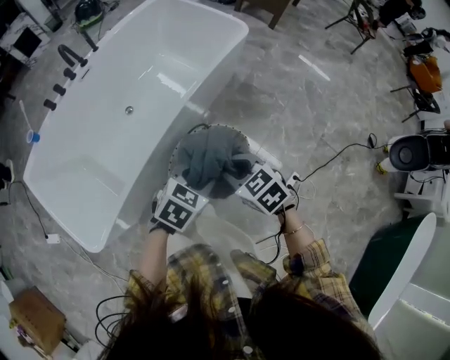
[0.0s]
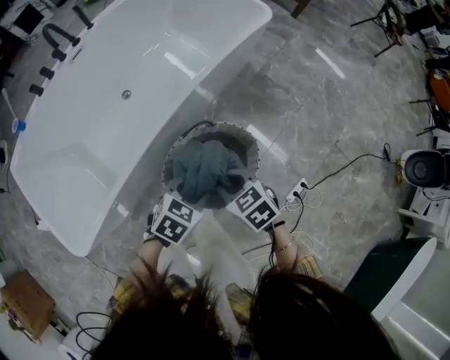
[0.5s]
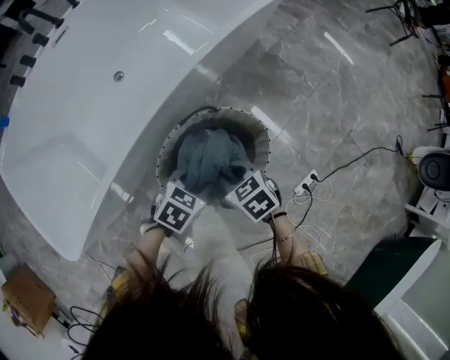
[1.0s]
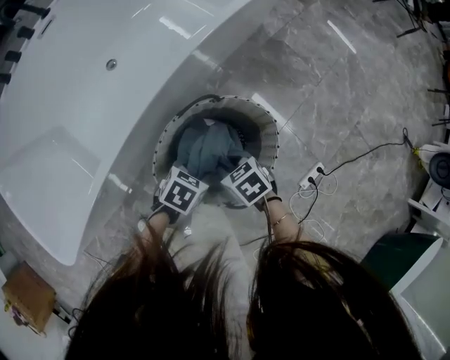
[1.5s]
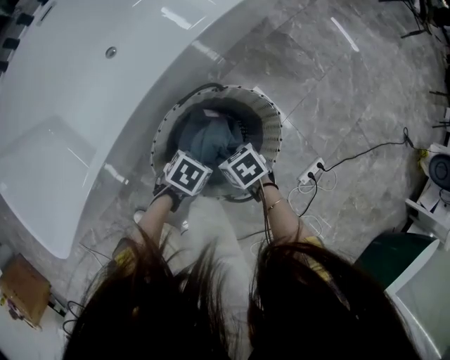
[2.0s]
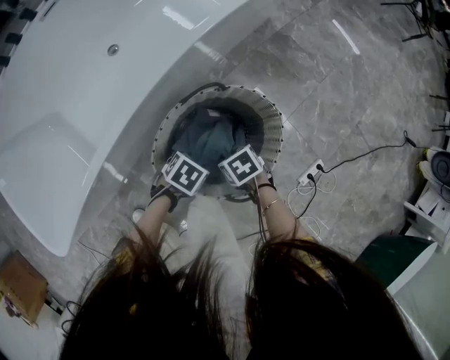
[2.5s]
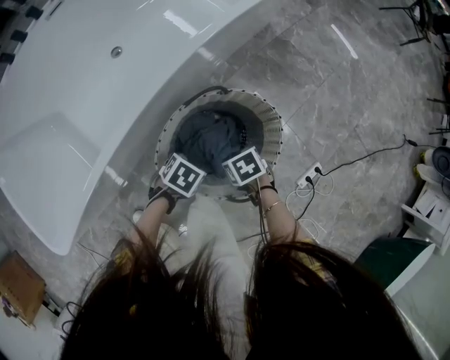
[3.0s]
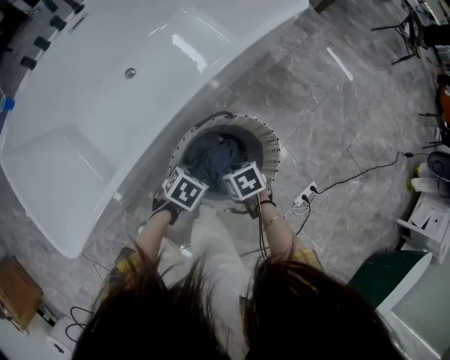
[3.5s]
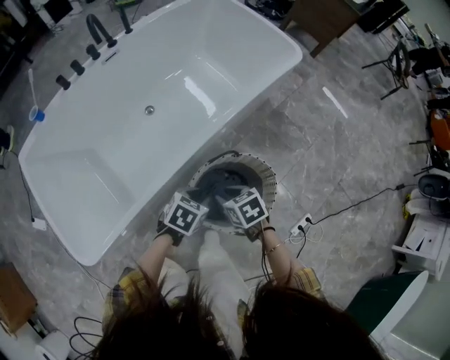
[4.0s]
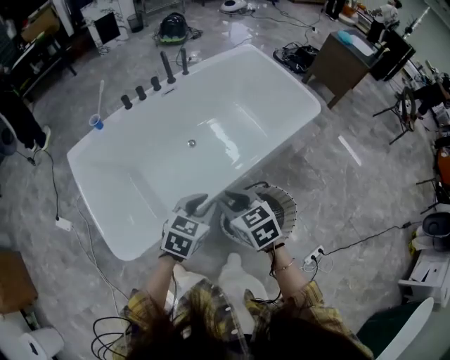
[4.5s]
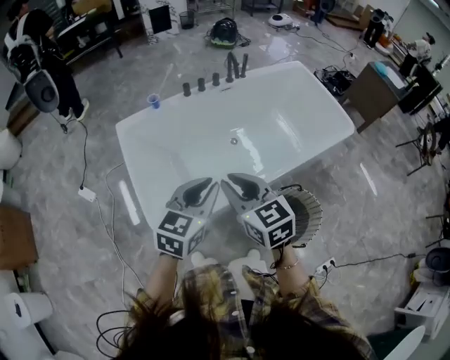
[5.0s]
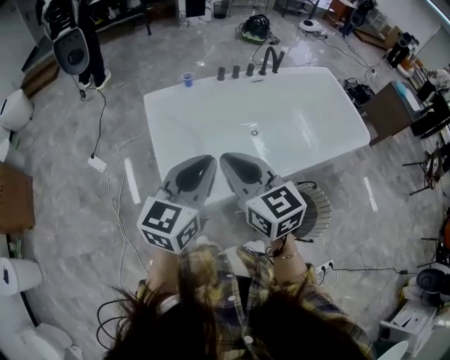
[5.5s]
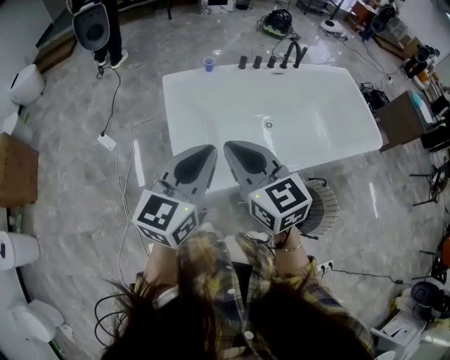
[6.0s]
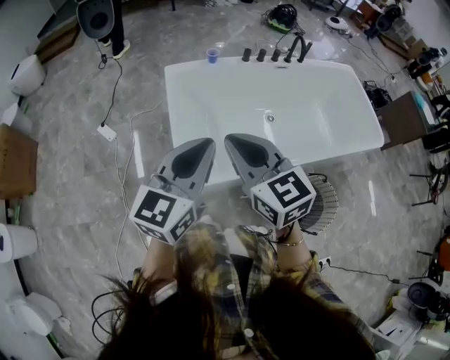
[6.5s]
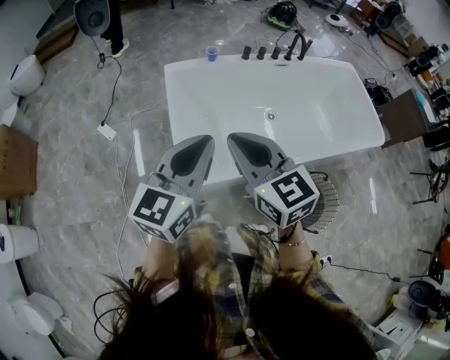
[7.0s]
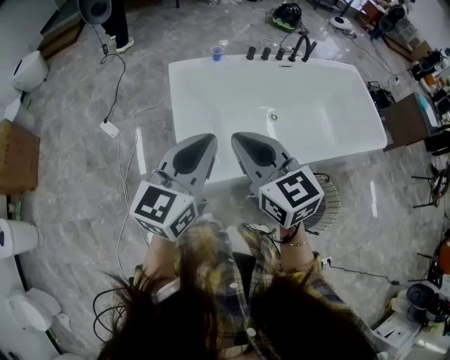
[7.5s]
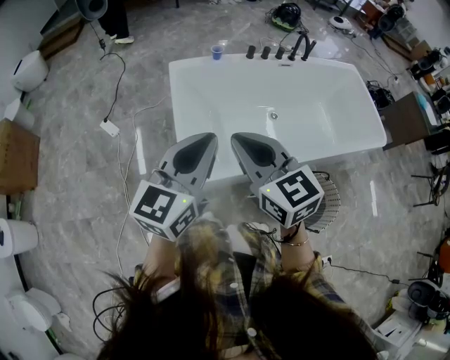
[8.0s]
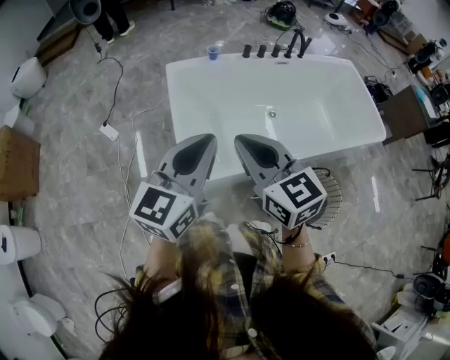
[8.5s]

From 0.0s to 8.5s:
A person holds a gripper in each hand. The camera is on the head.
From 0.0s to 2.0s: Both grippers move downward, roughly 40 cm. The left gripper changes its angle by some 30 degrees; the right gripper rotates about 30 degrees.
From 2.0s to 4.0s: The two grippers go approximately 20 cm upward.
From 4.0s to 6.5s: Both grippers are carried about 50 cm. The right gripper points its fingers some 40 degrees further upward; the left gripper tilts its fingers roughly 50 degrees upward.
From 6.5s to 8.5s: The grippers make only small movements.

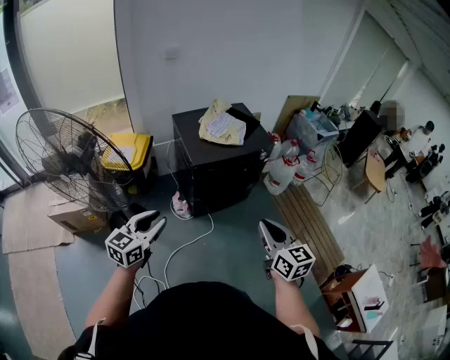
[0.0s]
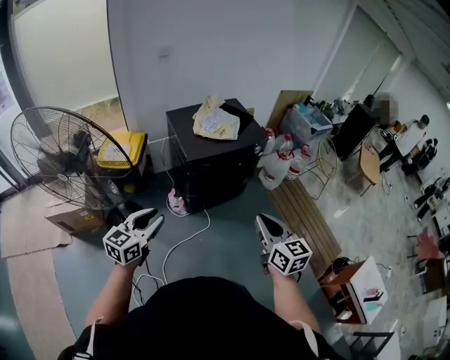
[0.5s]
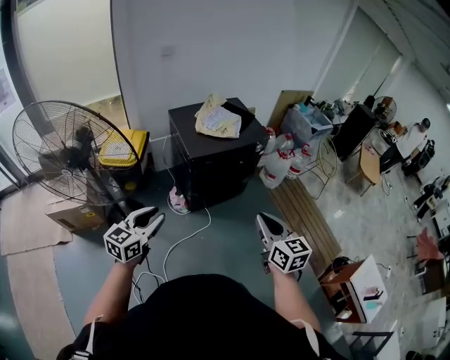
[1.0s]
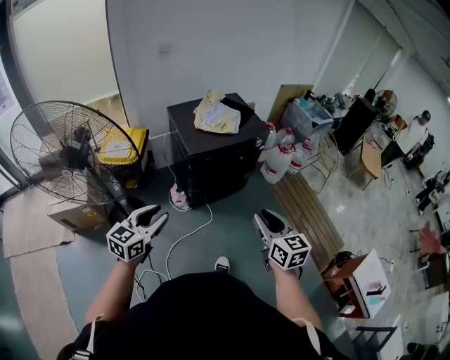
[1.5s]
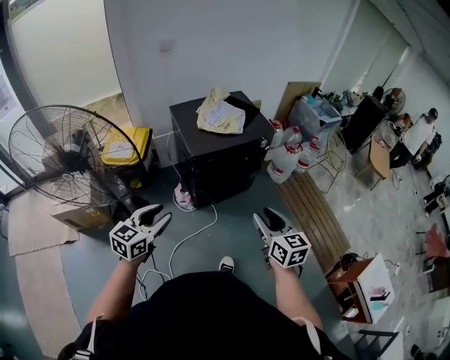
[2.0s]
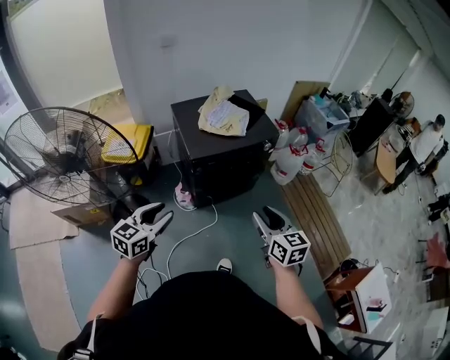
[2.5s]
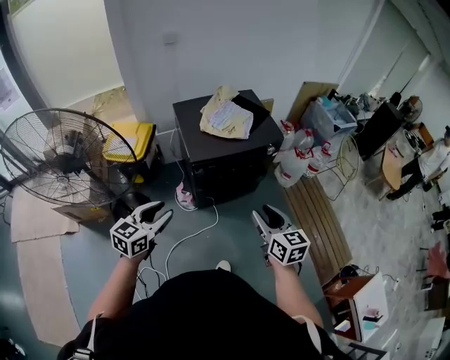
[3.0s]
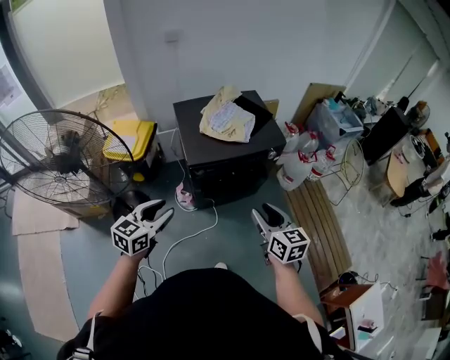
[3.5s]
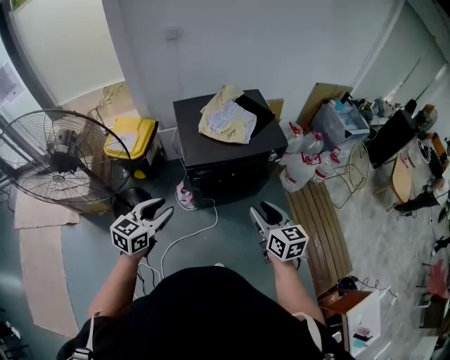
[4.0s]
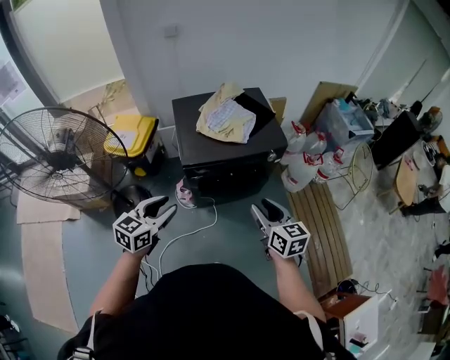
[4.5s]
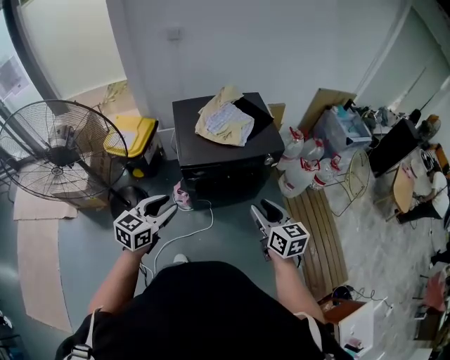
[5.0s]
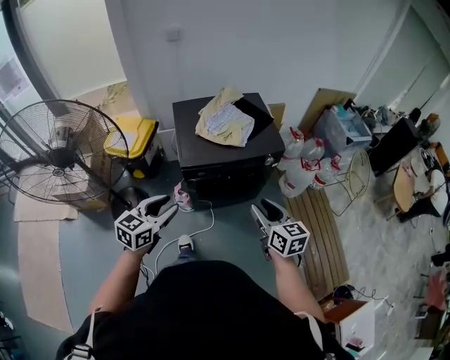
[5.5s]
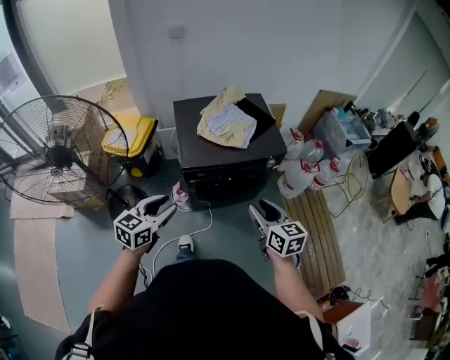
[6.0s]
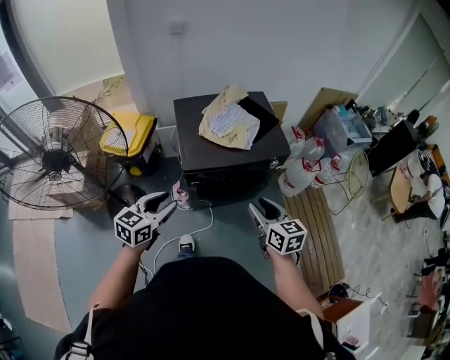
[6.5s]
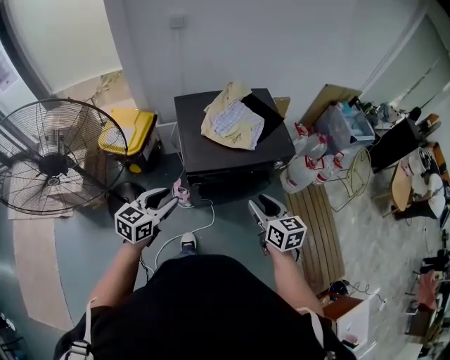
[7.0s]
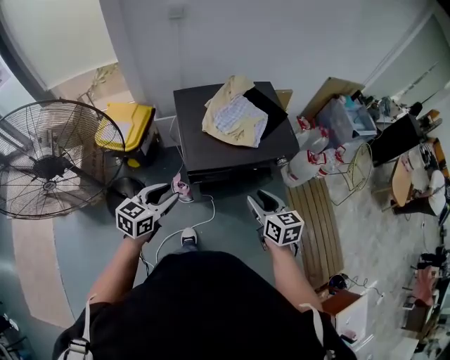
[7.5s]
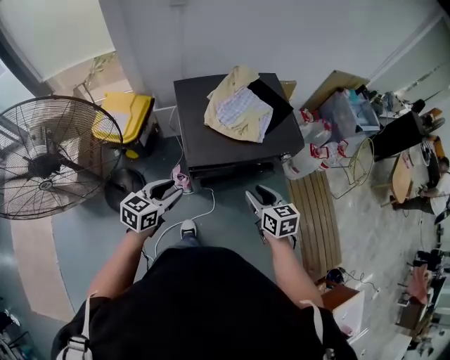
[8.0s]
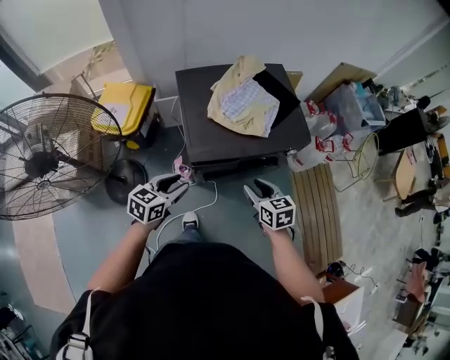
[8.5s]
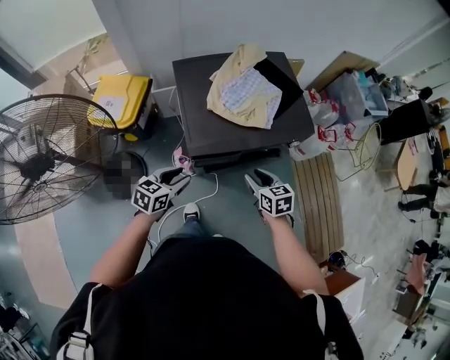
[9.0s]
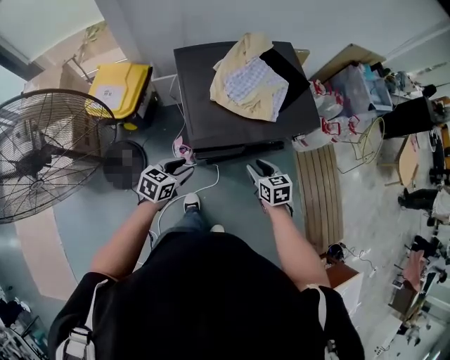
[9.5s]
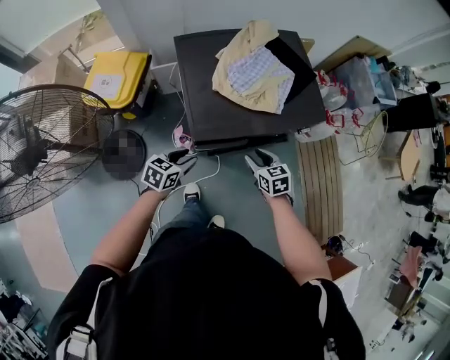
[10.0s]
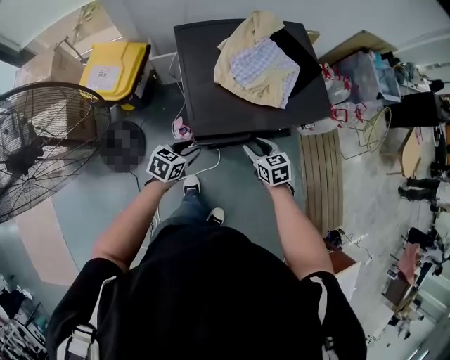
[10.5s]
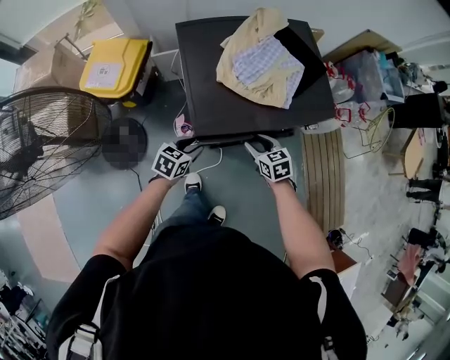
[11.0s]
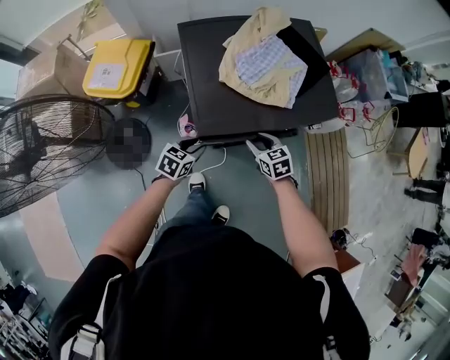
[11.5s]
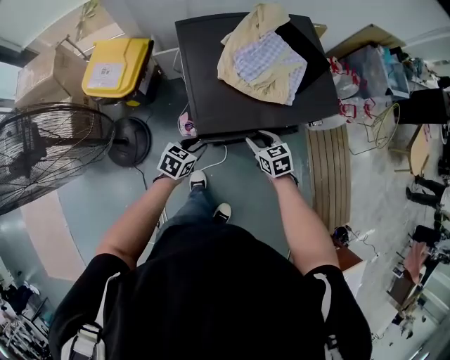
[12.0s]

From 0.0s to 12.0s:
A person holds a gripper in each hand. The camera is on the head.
From 0.0s to 2.0s: The right gripper opens up.
From 2.0s to 4.0s: The right gripper is displaced forward by about 20 cm; the left gripper heads forward and to the right, covering roughly 15 cm.
From 4.0s to 6.0s: The grippers stay close to where they were, moving slightly.
From 6.0s to 8.0s: Both grippers travel together forward, downward and to the left, roughly 15 cm.
From 8.0s to 10.0s: Both grippers travel together downward and forward, roughly 20 cm.
From 10.0s to 12.0s: The left gripper travels downward by roughly 5 cm; the right gripper moves approximately 5 cm.

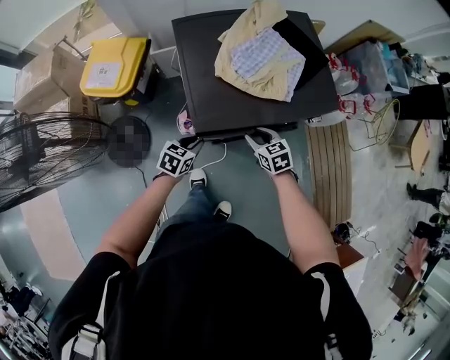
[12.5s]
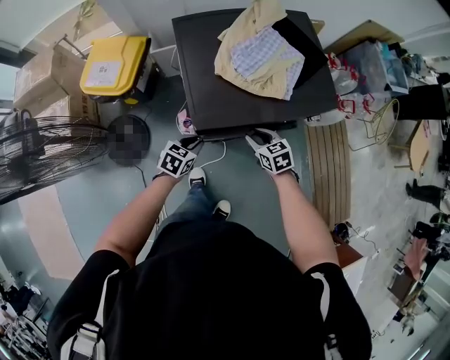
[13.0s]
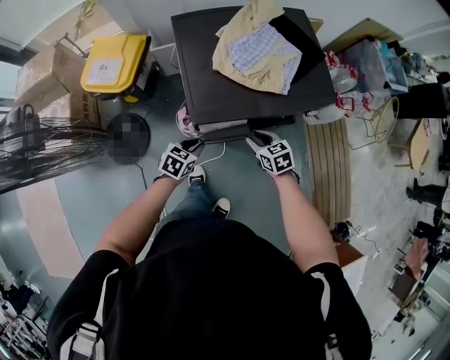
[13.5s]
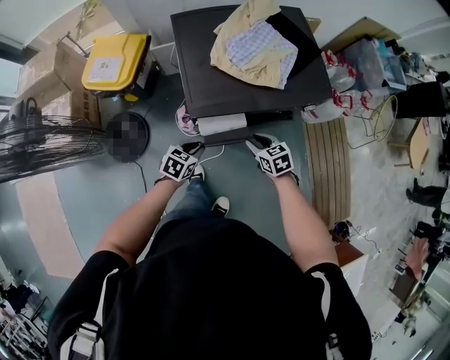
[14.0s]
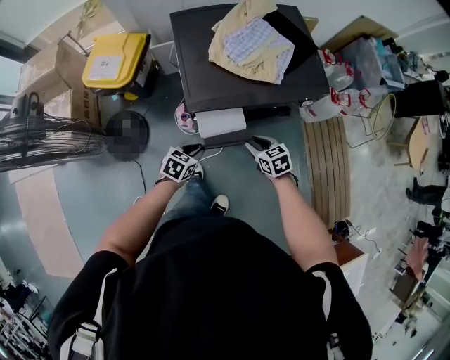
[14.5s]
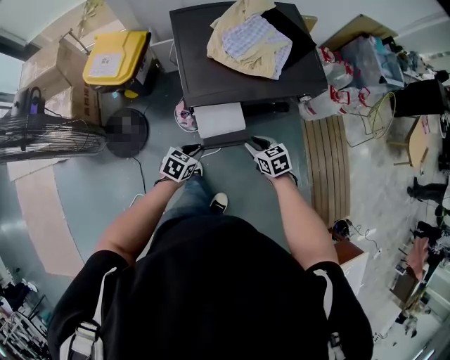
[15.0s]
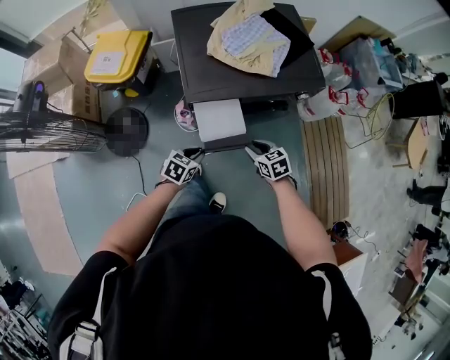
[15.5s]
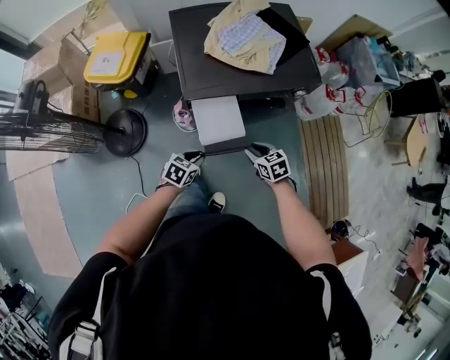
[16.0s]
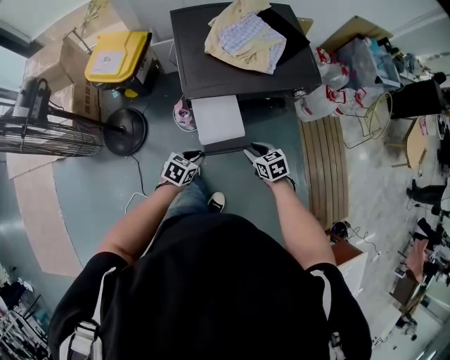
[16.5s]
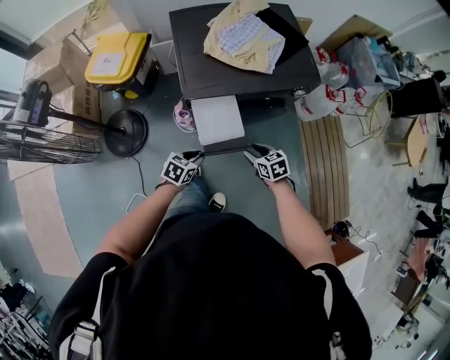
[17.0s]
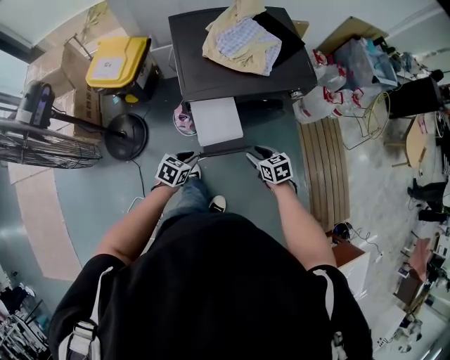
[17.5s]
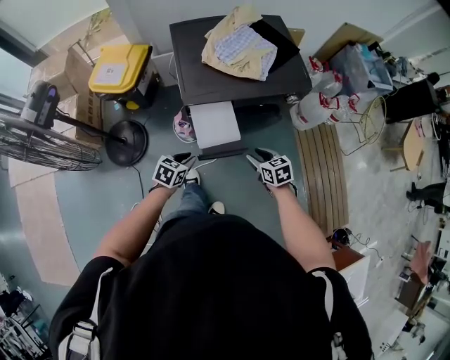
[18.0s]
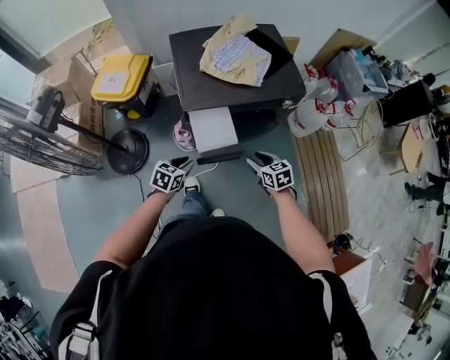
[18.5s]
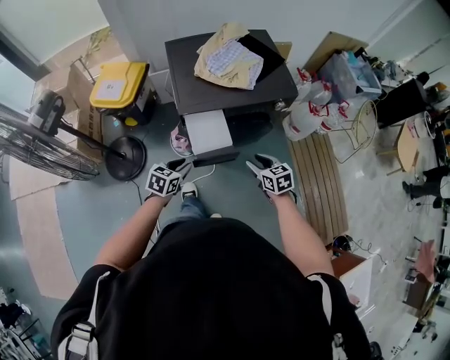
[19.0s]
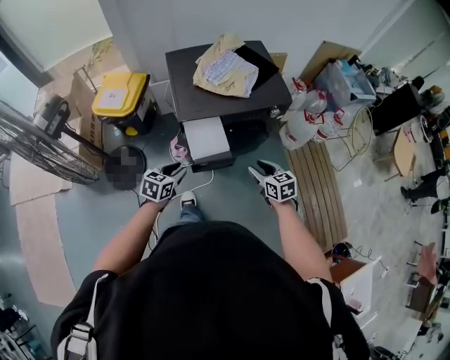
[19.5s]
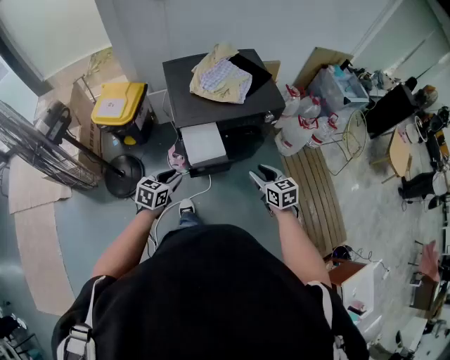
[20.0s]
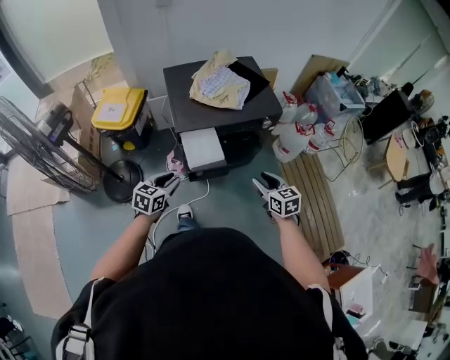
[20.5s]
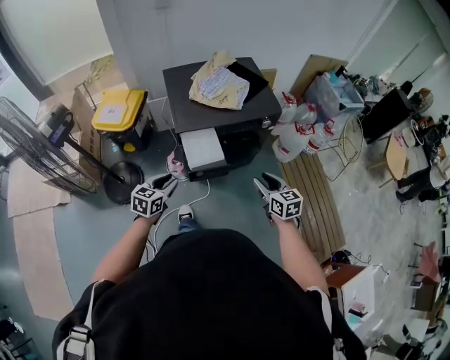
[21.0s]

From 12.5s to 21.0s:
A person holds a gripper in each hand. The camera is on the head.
From 12.5s to 14.5s: Both grippers move backward, roughly 10 cm.
From 14.5s to 16.5s: Both grippers move backward, about 5 cm.
From 16.5s to 19.0s: Both grippers travel together upward, approximately 10 cm.
From 19.0s to 21.0s: The left gripper goes about 10 cm upward, while the right gripper goes some 15 cm upward and backward.
